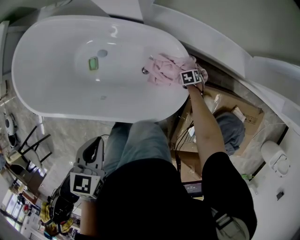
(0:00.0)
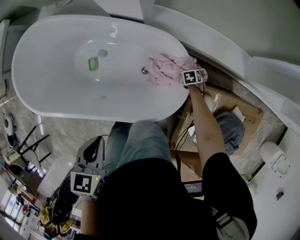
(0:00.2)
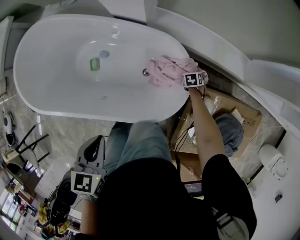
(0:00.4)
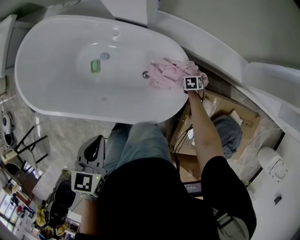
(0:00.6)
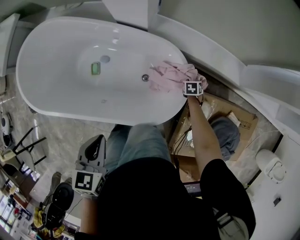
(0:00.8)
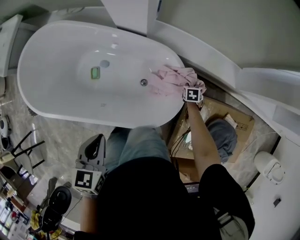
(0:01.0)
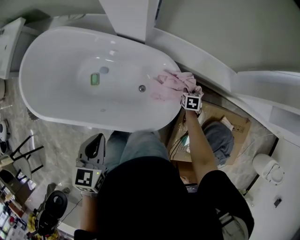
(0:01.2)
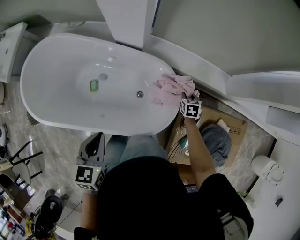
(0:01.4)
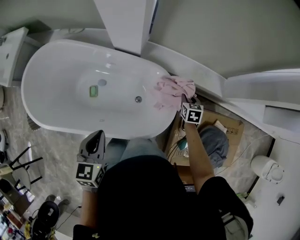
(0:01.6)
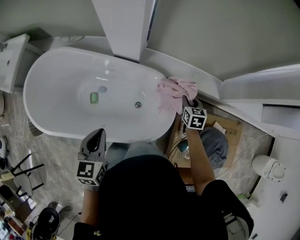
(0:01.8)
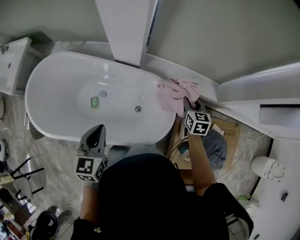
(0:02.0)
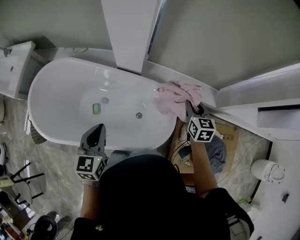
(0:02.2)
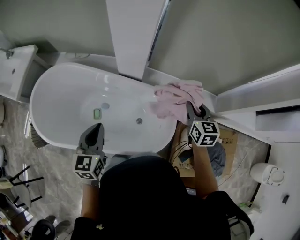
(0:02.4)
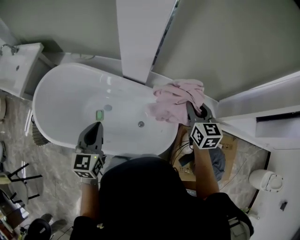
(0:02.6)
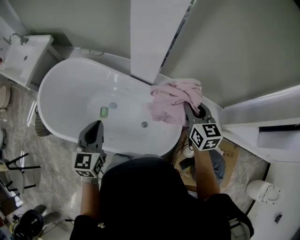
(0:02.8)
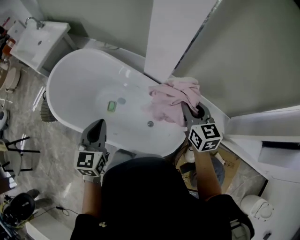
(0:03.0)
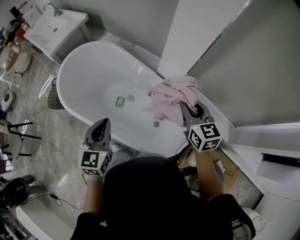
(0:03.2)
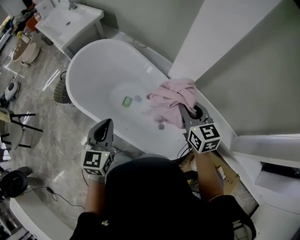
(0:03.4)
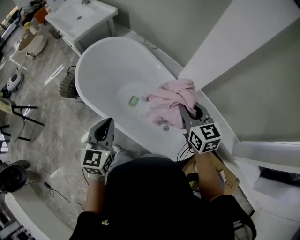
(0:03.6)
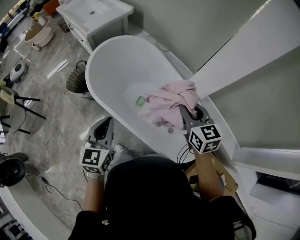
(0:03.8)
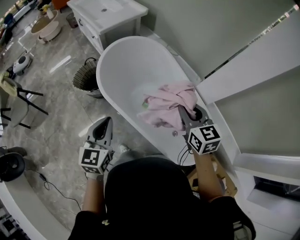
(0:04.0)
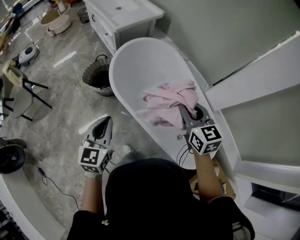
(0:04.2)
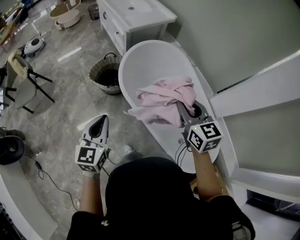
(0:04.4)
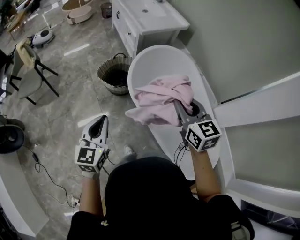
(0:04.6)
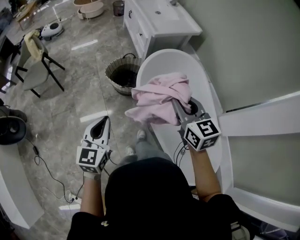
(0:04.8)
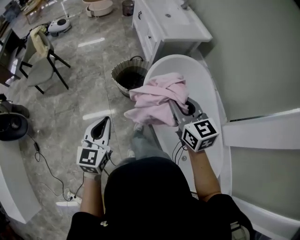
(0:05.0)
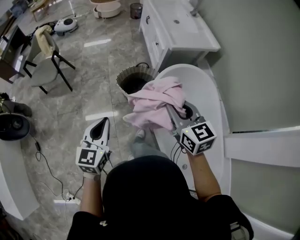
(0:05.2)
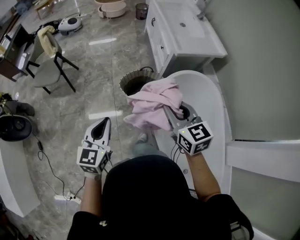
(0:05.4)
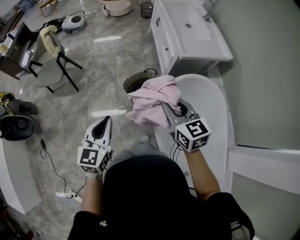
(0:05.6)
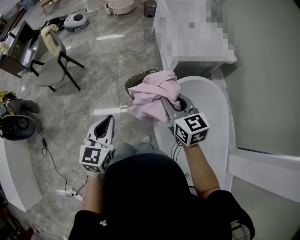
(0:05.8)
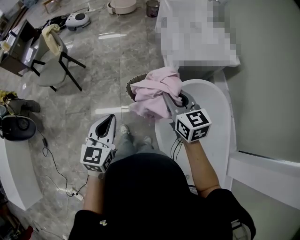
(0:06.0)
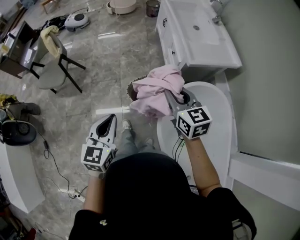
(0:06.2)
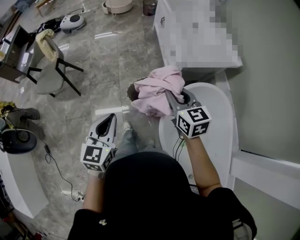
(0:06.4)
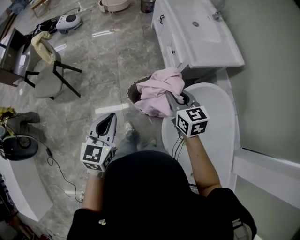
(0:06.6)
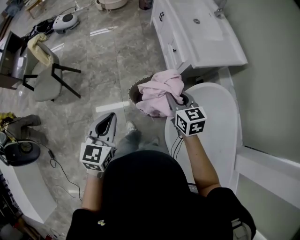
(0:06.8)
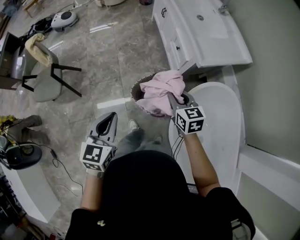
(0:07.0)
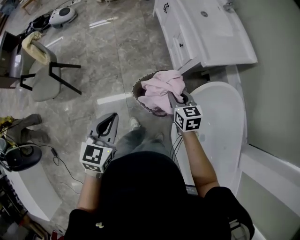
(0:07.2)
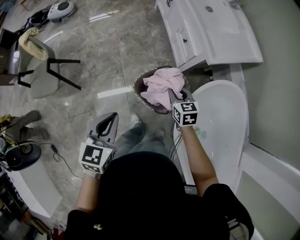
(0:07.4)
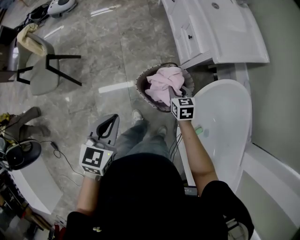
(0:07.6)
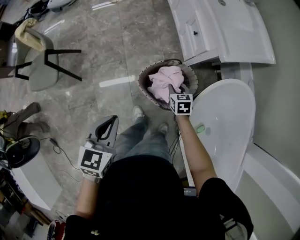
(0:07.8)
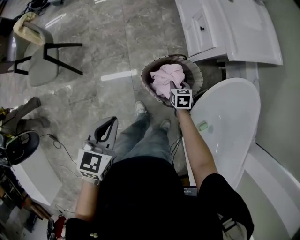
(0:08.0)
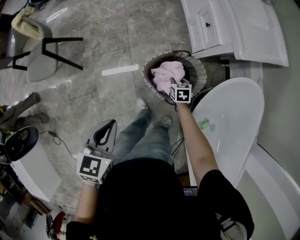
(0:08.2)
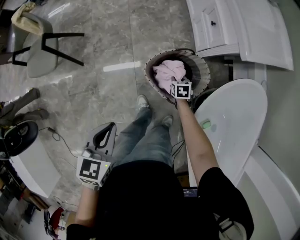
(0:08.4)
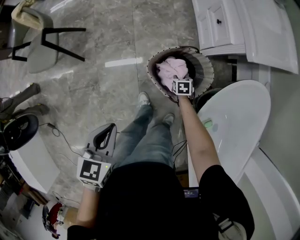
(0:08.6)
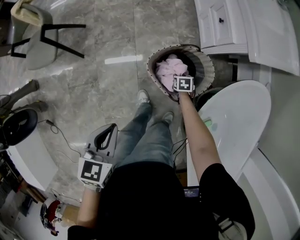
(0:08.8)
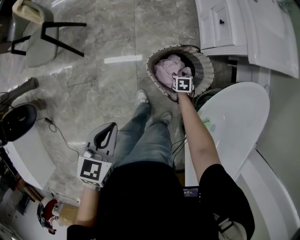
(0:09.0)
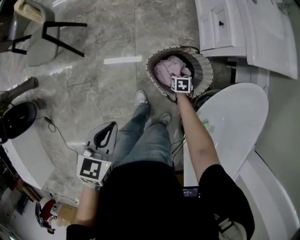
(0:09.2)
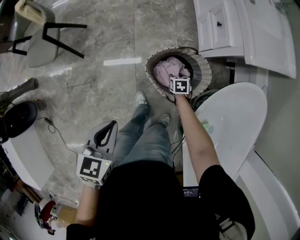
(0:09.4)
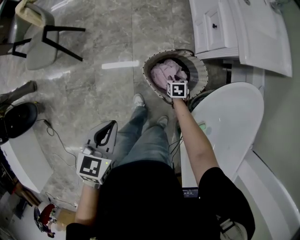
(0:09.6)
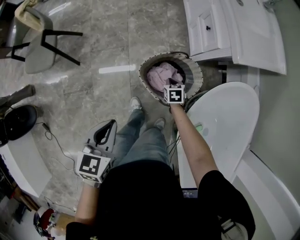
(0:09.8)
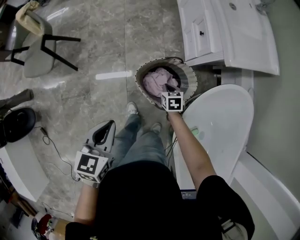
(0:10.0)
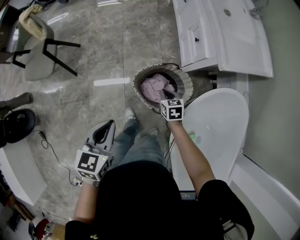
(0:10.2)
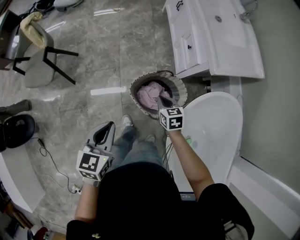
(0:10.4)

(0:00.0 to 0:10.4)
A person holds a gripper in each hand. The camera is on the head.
0:00.0 - 0:01.4: The left gripper is displaced upward by about 5 cm, while the right gripper moves upward, about 25 cm, changes its angle by approximately 30 degrees, and closes its fingers.
0:01.4 - 0:03.0: The left gripper heads upward and to the left, covering approximately 20 cm, and changes its angle by about 20 degrees; the right gripper moves upward and to the left, some 50 cm, and tilts its fingers roughly 40 degrees upward.
0:03.0 - 0:04.4: Both grippers are carried some 50 cm. The left gripper changes its angle by approximately 30 degrees, while the right gripper turns by about 40 degrees.
0:04.4 - 0:06.0: The left gripper ends up roughly 35 cm from where it was, and rotates roughly 20 degrees, while the right gripper ends up some 50 cm from where it was, and changes its angle by about 30 degrees.
0:06.0 - 0:07.4: The left gripper shifts roughly 25 cm forward and downward. The right gripper goes roughly 35 cm downward and forward, and rotates approximately 20 degrees.
0:07.4 - 0:09.0: The left gripper travels downward and backward by approximately 15 cm, and swivels approximately 20 degrees. The right gripper is displaced downward by about 35 cm, and tips its fingers downward by approximately 30 degrees.
0:09.0 - 0:10.4: The left gripper heads upward, covering approximately 10 cm. Meanwhile the right gripper travels upward by about 30 cm, changes its angle by some 20 degrees, and closes.

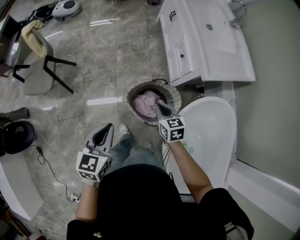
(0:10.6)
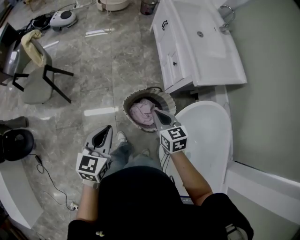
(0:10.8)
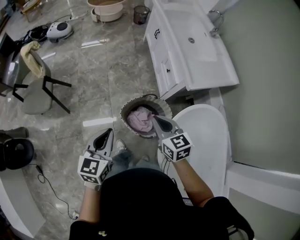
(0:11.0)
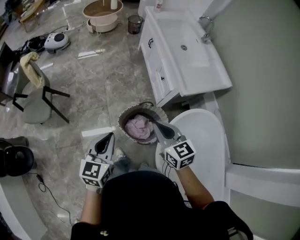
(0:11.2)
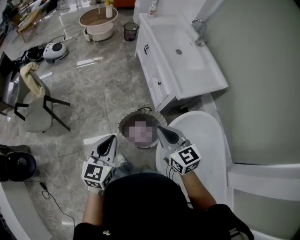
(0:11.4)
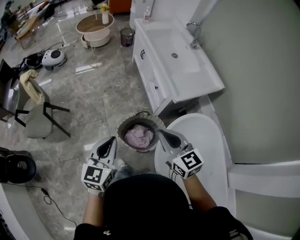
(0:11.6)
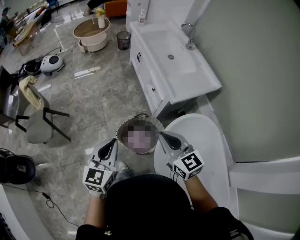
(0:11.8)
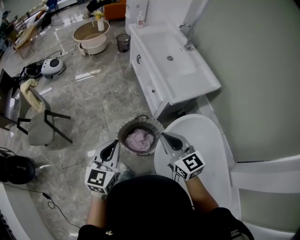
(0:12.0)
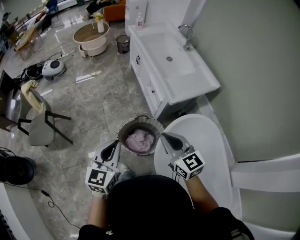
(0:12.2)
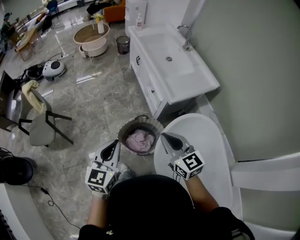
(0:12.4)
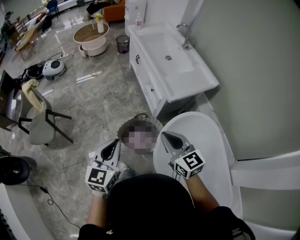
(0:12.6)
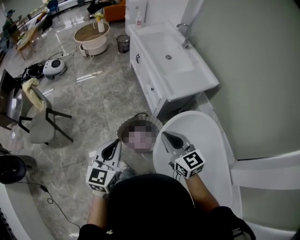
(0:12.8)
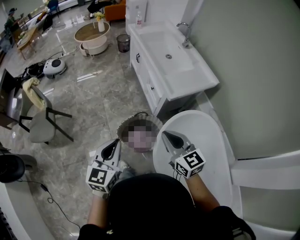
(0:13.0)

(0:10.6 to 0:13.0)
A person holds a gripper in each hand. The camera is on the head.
0:10.6 - 0:11.8: The right gripper is displaced upward by about 30 cm, and rotates some 30 degrees, while the left gripper heads upward and to the right, covering about 20 cm.
0:11.8 - 0:13.0: The left gripper ends up about 5 cm from where it was. The right gripper ends up approximately 5 cm from where it was.

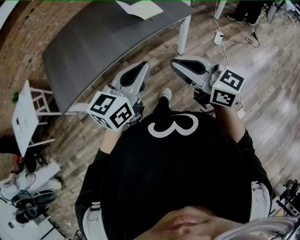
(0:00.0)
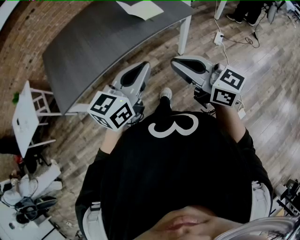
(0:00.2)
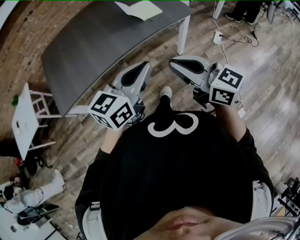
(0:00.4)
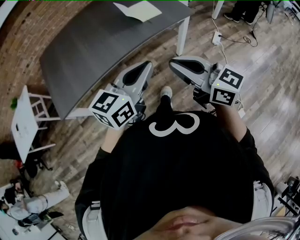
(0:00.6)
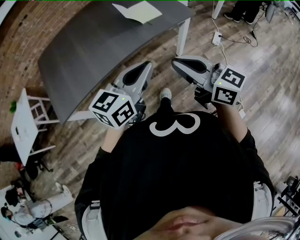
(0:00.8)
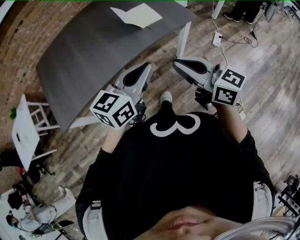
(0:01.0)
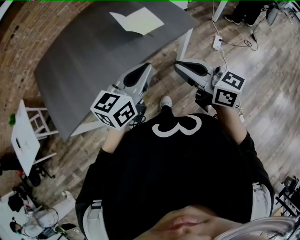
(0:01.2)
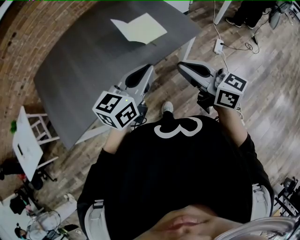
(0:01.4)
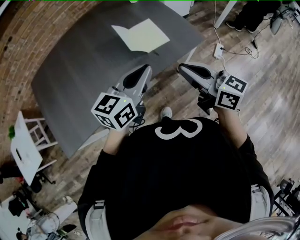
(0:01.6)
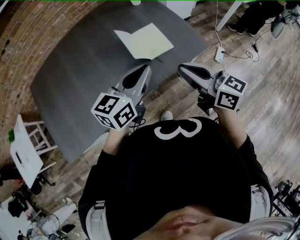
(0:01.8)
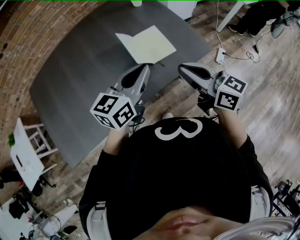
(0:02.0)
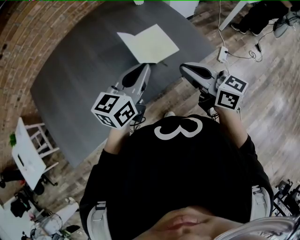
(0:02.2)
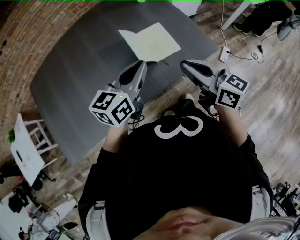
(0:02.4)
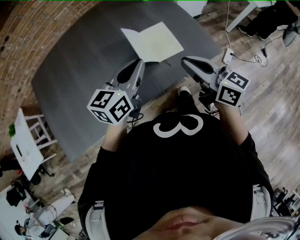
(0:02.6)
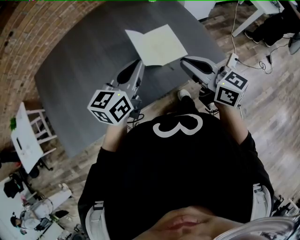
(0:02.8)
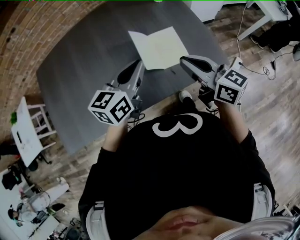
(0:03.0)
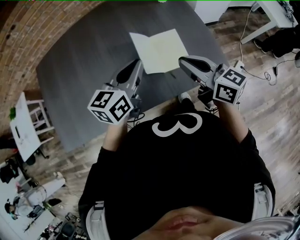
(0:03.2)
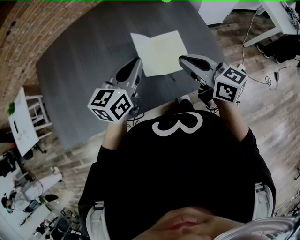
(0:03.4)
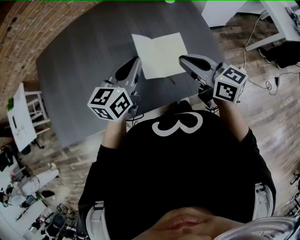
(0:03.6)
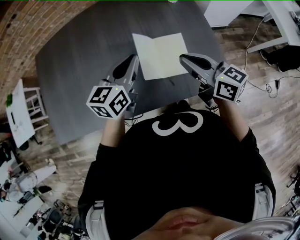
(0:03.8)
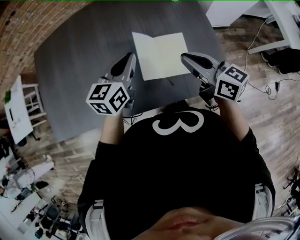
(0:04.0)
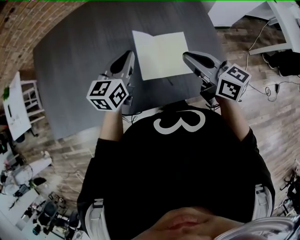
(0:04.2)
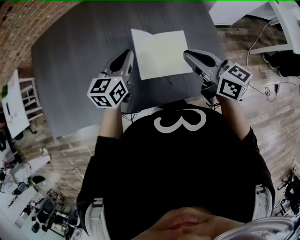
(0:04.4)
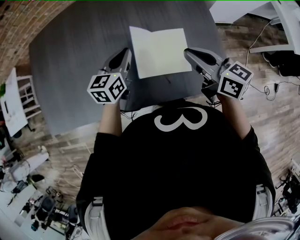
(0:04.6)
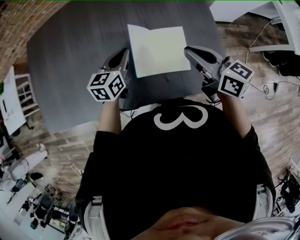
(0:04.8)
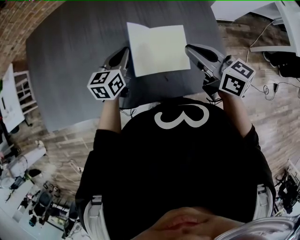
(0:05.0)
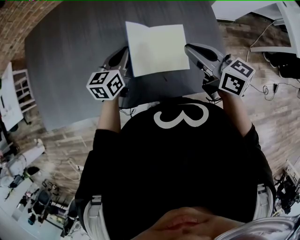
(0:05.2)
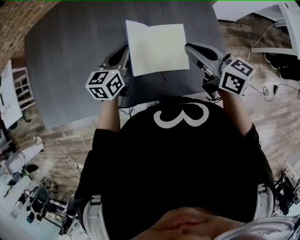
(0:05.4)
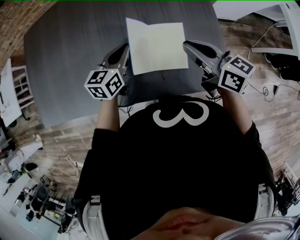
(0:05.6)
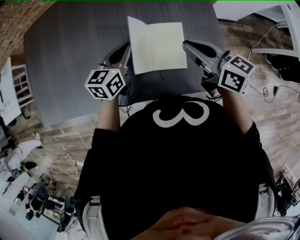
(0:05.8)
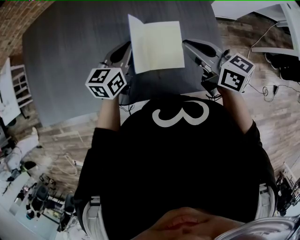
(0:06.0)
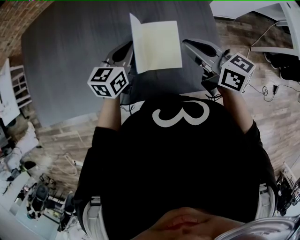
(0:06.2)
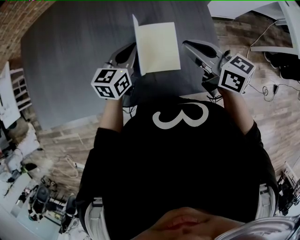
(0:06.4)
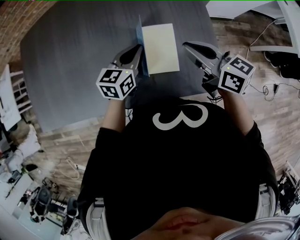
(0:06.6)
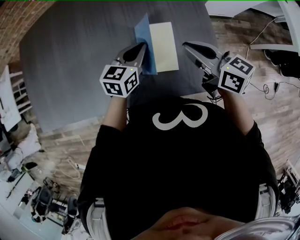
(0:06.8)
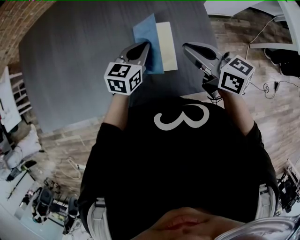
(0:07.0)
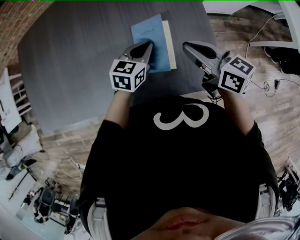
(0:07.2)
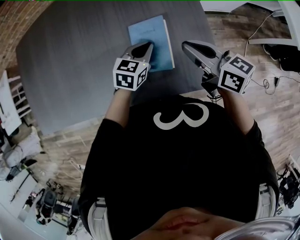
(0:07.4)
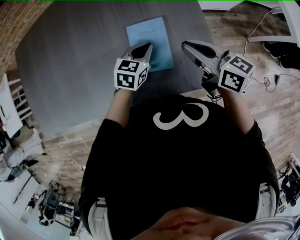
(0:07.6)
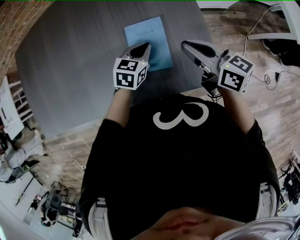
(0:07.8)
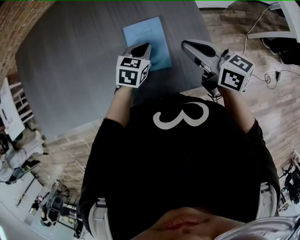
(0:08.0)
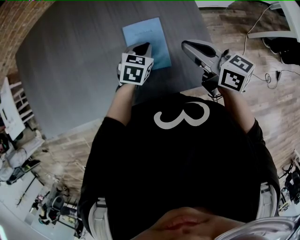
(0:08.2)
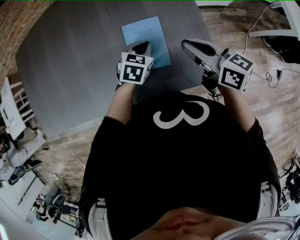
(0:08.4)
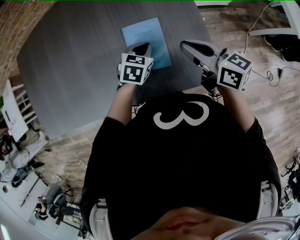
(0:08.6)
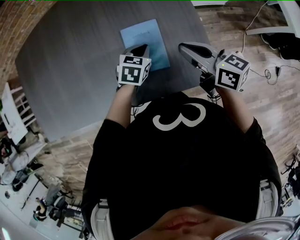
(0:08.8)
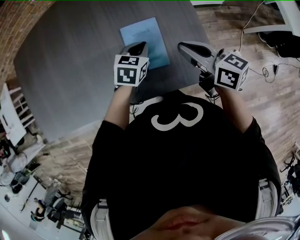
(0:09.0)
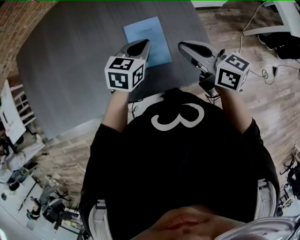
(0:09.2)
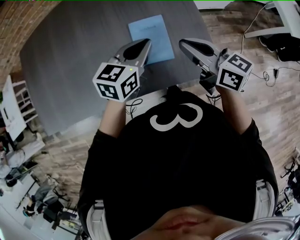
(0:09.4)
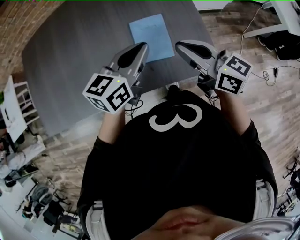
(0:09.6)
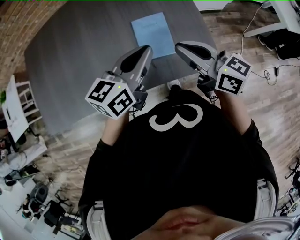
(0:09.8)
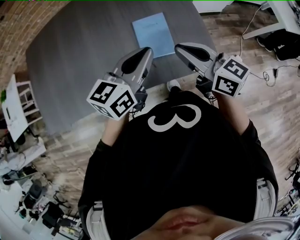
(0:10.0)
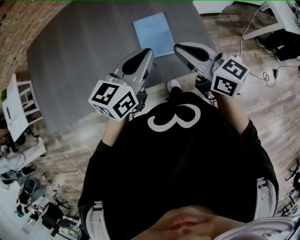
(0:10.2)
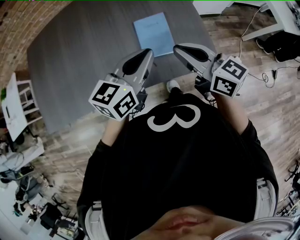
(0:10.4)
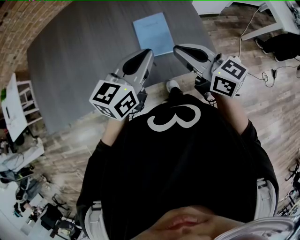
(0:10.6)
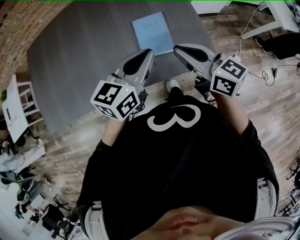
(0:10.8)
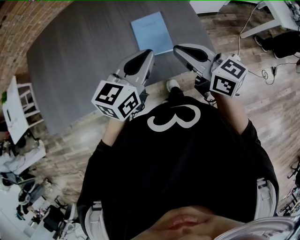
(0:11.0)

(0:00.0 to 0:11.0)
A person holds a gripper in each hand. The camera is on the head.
0:00.0 - 0:01.6: Both grippers move forward, roughly 30 cm.
0:01.6 - 0:03.2: The grippers both shift forward by roughly 20 cm. The left gripper swivels some 20 degrees.
0:03.2 - 0:04.8: The left gripper heads downward and forward, covering roughly 15 cm; the right gripper travels forward by roughly 10 cm.
0:04.8 - 0:06.2: The left gripper moves to the right, some 5 cm.
0:06.2 - 0:07.8: The left gripper goes roughly 10 cm downward and to the right, and turns by some 20 degrees.
0:07.8 - 0:09.4: The left gripper travels upward by approximately 15 cm; the right gripper shifts by roughly 5 cm.
0:09.4 - 0:11.0: The left gripper travels backward and upward by some 10 cm, while the right gripper shifts approximately 10 cm backward.
